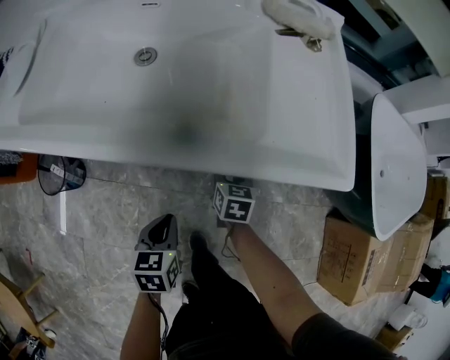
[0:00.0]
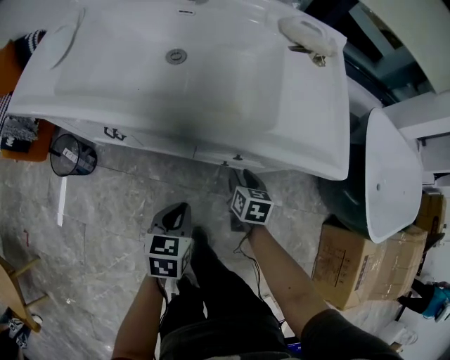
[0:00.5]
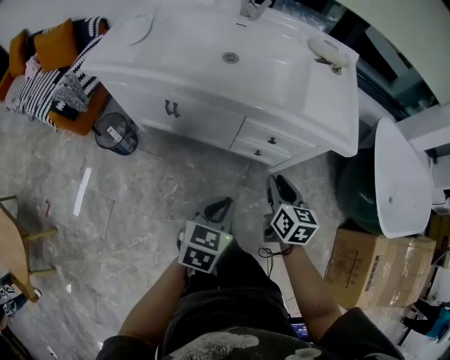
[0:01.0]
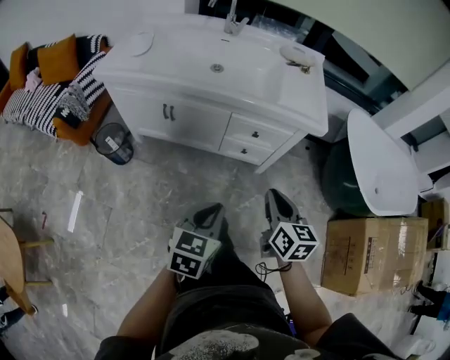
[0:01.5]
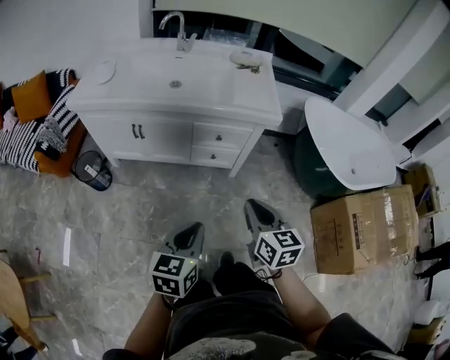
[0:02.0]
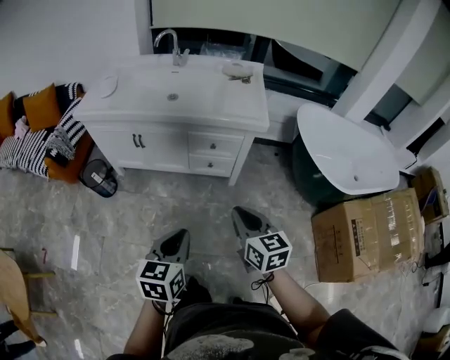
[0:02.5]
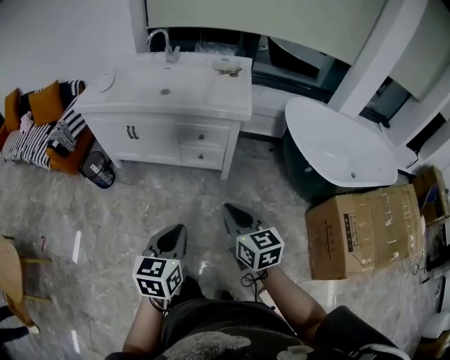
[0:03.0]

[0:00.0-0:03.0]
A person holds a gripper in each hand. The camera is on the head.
0:00.0 to 0:01.5: The two grippers go about 40 cm backward and upward. The right gripper rotates approximately 20 degrees, and closes up, while the left gripper changes its angle by some 20 degrees.
0:01.5 to 0:03.0: The grippers both shift backward, to the right and upward by about 25 cm.

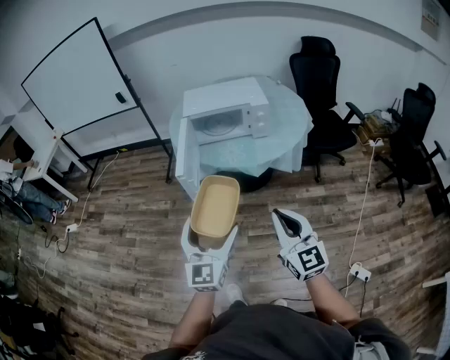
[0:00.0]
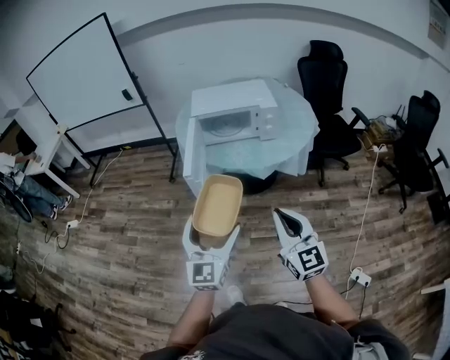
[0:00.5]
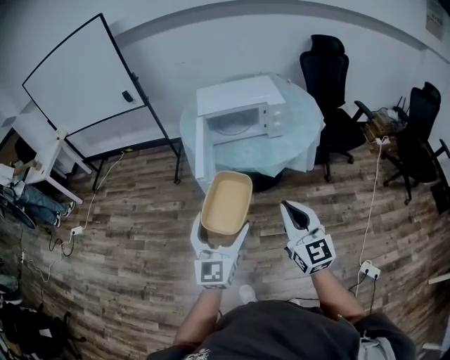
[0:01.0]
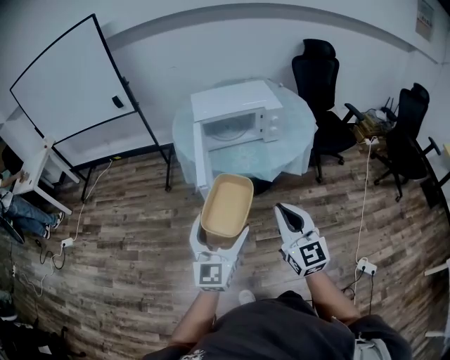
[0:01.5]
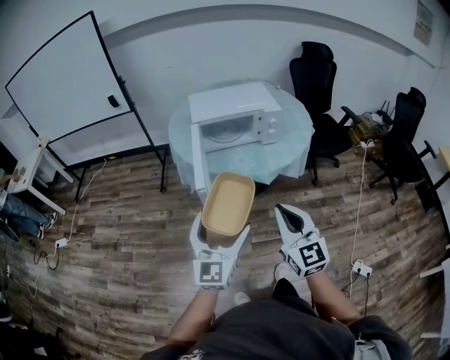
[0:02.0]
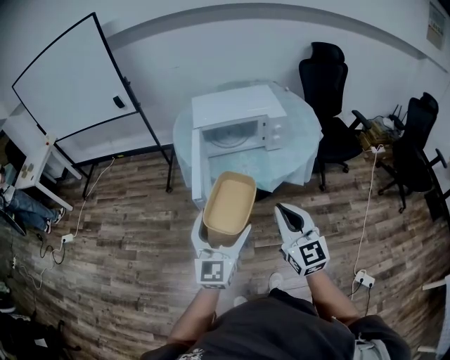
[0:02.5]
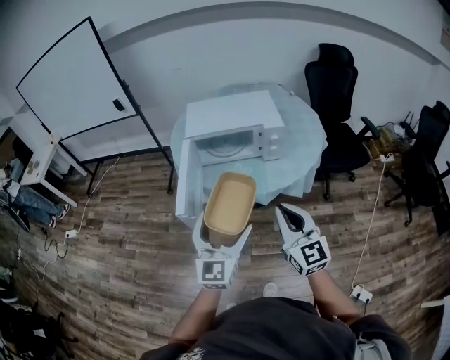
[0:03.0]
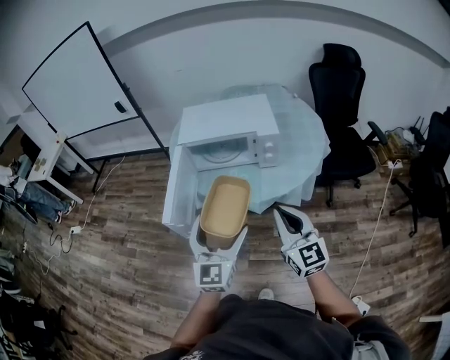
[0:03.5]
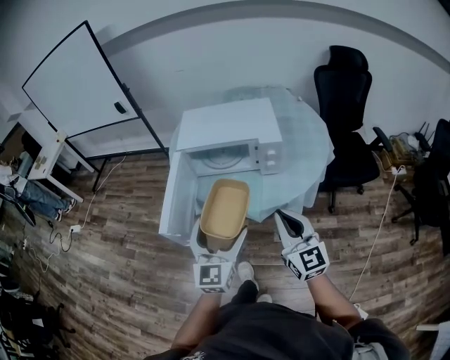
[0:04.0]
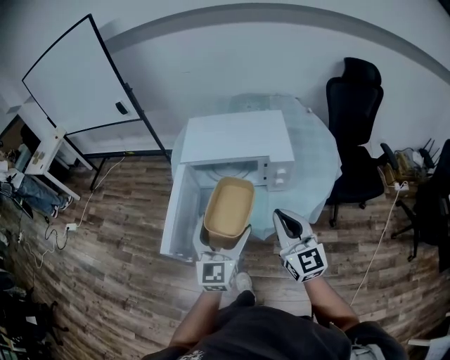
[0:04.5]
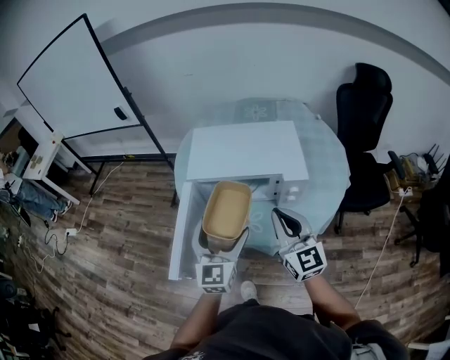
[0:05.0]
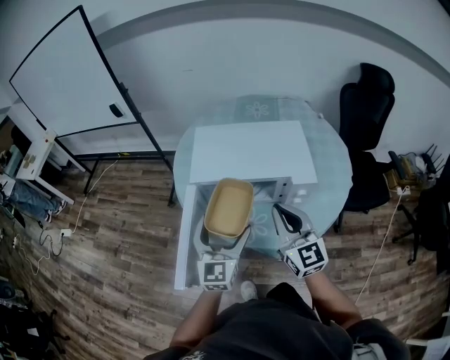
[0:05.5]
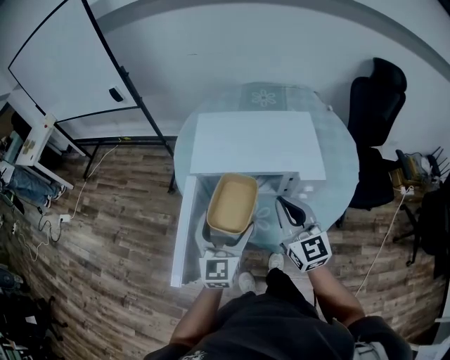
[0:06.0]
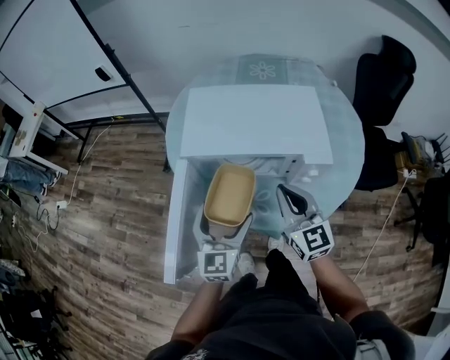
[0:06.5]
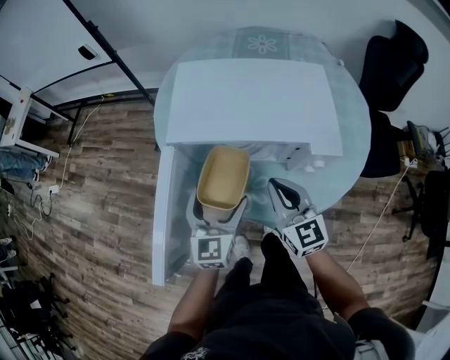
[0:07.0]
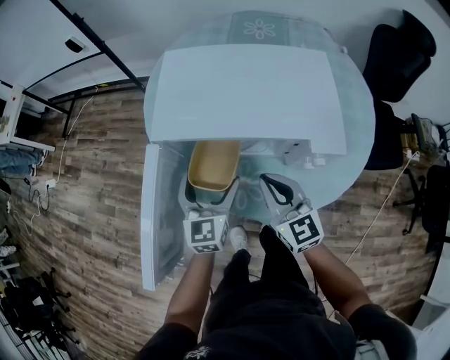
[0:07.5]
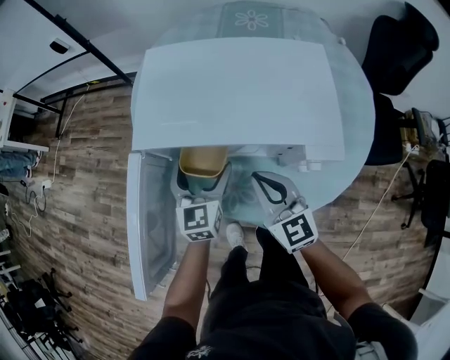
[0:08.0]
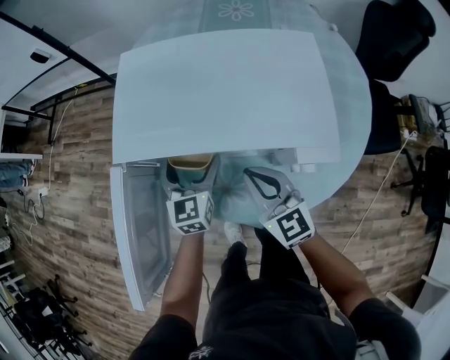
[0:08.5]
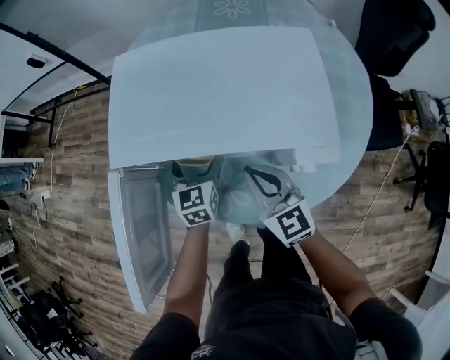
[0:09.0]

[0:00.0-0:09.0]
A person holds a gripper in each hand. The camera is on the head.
0:00.0 to 0:02.0: The left gripper travels forward and to the left by some 10 cm; the right gripper is displaced to the left and forward by approximately 15 cm.
0:02.0 to 0:04.5: The two grippers go roughly 30 cm forward and to the right.
0:04.5 to 0:07.0: The grippers both shift forward and downward by approximately 25 cm.
0:07.0 to 0:09.0: The right gripper heads downward and forward, covering roughly 10 cm. The left gripper travels forward, downward and to the right by about 20 cm.

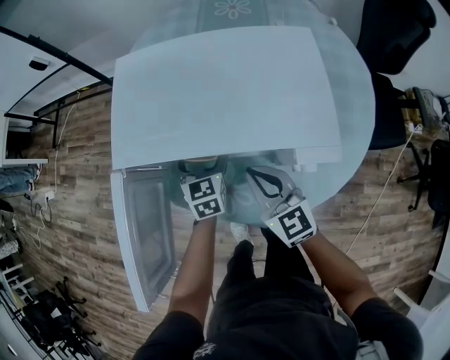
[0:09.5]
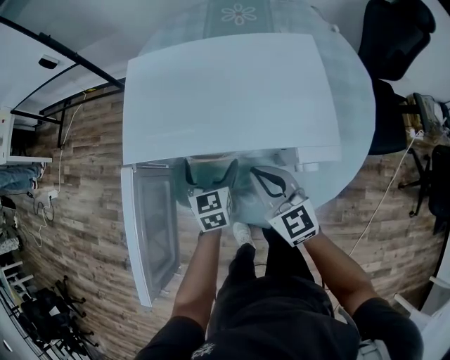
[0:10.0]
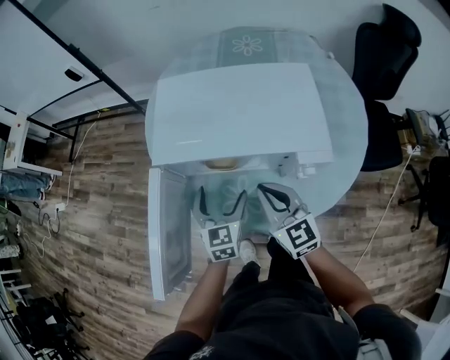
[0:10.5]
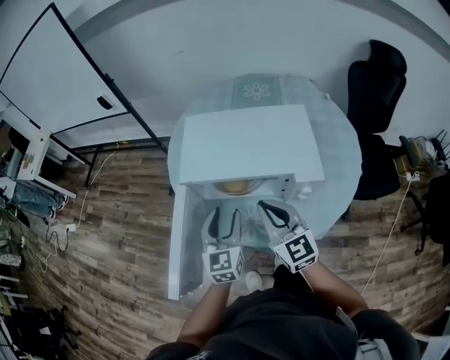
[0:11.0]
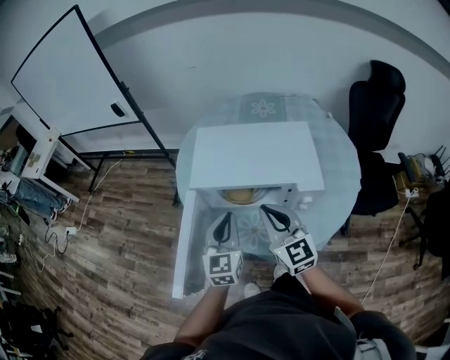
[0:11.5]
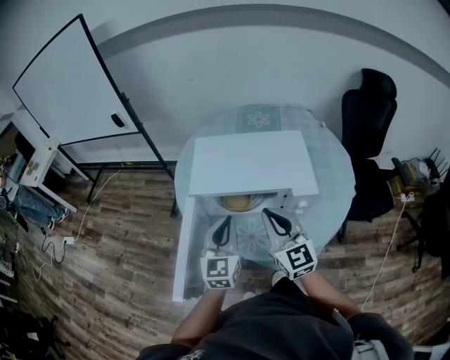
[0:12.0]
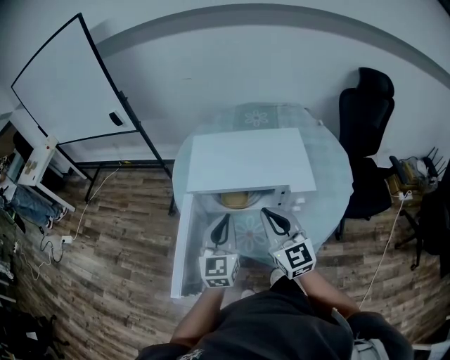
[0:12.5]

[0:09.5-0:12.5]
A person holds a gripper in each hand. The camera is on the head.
0:09.5 to 0:11.0: The right gripper is displaced upward by some 15 cm. Meanwhile the left gripper travels upward and backward by roughly 25 cm, swivels approximately 20 degrees, and closes its fingers.
0:11.0 to 0:12.5: The left gripper is displaced upward by some 5 cm, and closes up.

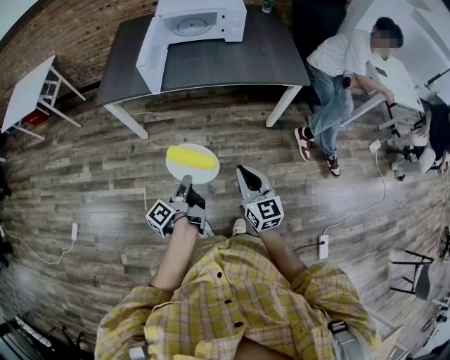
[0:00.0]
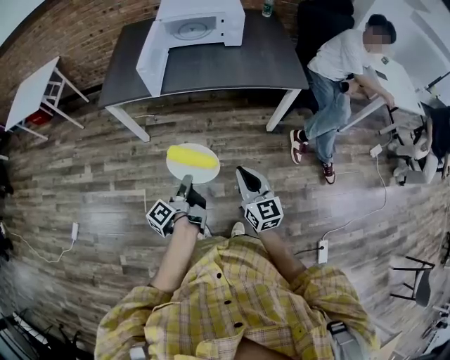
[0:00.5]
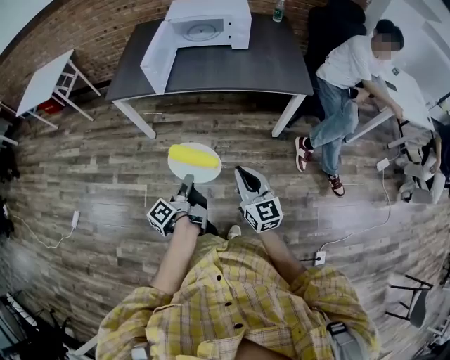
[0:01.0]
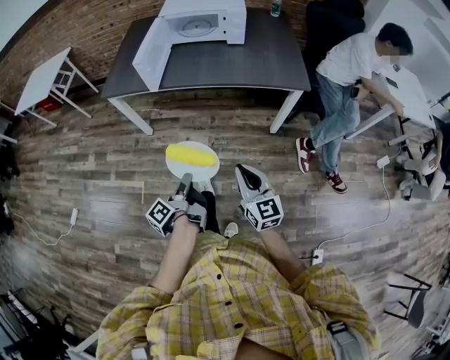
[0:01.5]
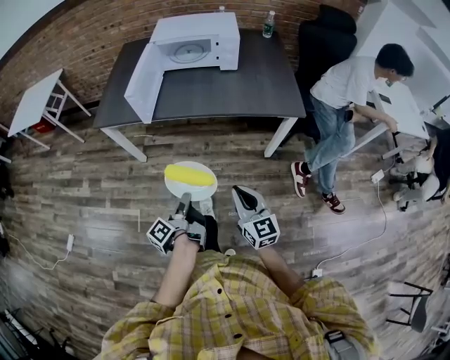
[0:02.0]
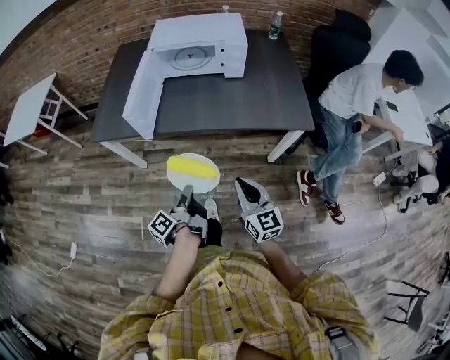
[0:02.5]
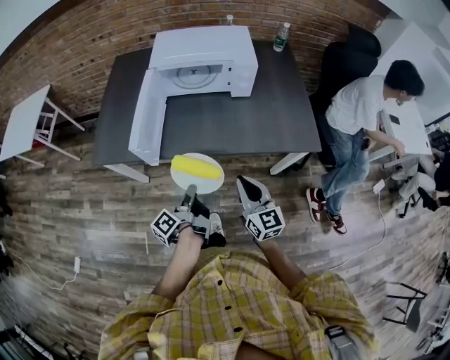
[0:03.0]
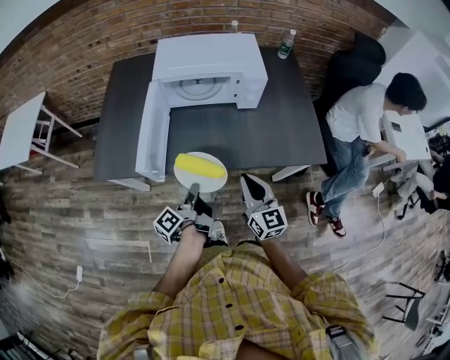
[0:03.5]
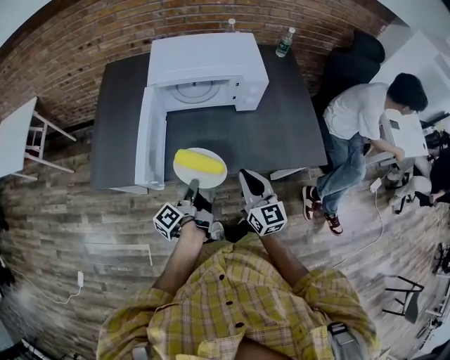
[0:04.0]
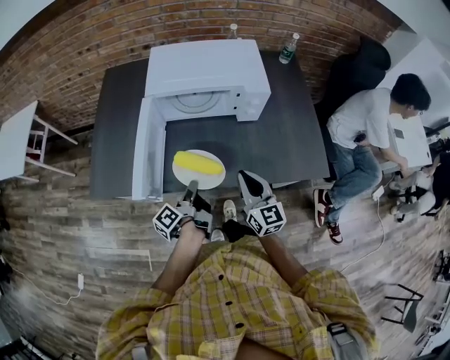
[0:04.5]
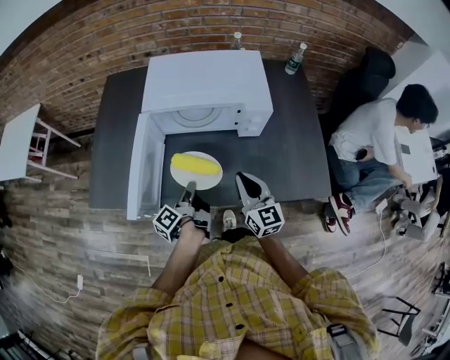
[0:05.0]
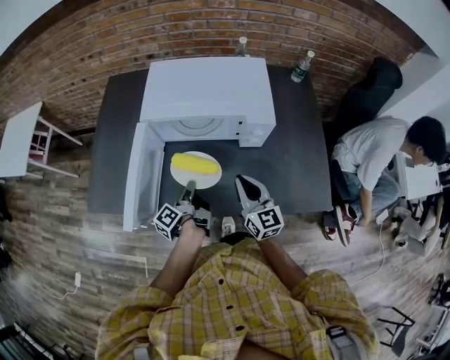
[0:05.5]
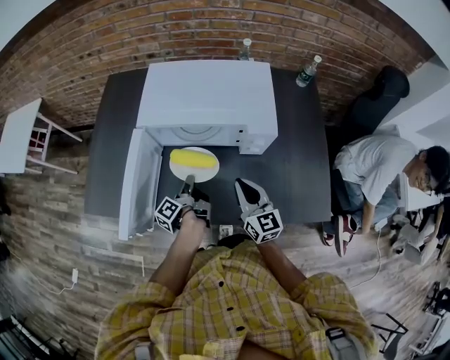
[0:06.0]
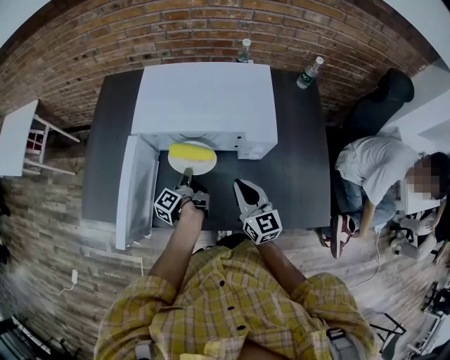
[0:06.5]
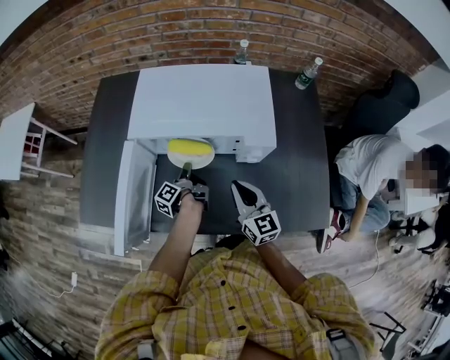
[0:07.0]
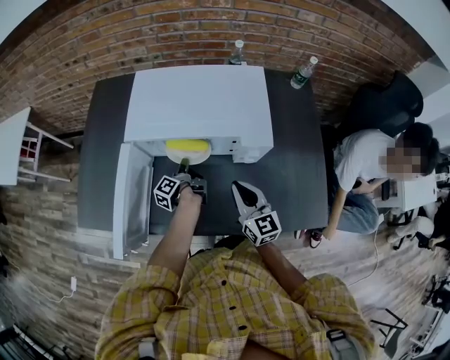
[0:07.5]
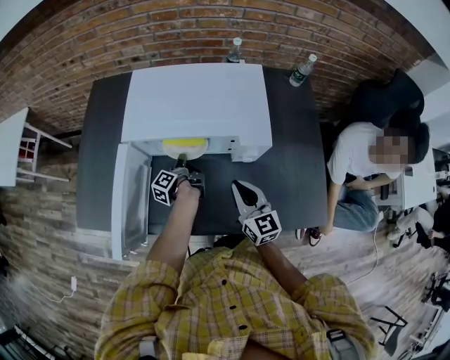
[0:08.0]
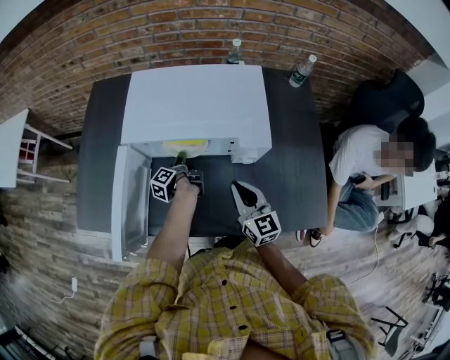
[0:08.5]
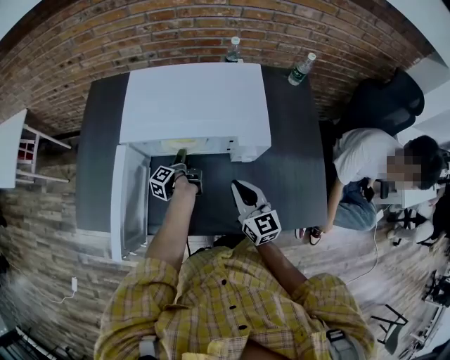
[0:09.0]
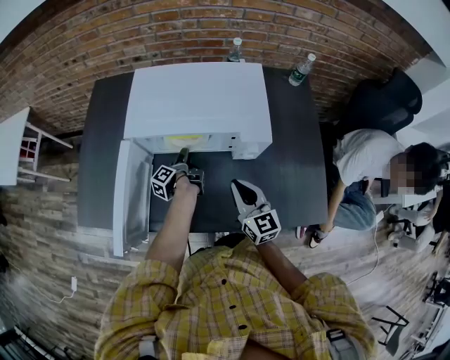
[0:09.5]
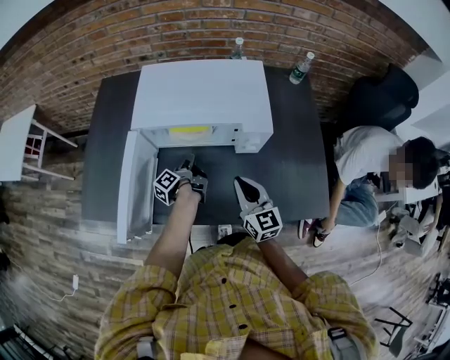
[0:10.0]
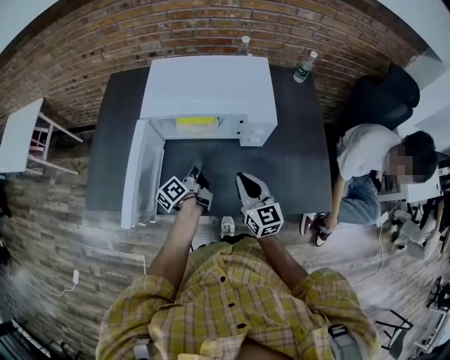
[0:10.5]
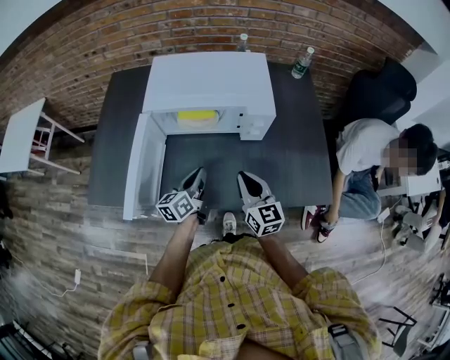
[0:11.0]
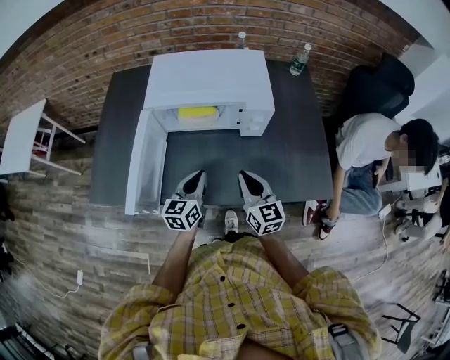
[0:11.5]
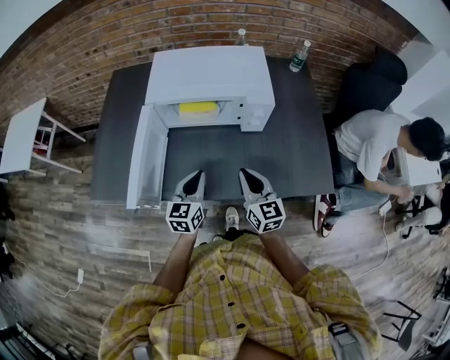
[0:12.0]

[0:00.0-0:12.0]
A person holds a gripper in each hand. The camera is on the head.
0:00.0 to 0:02.0: The right gripper ends up some 10 cm from where it was.
0:02.0 to 0:04.0: The right gripper ends up roughly 40 cm from where it was.
0:04.0 to 0:06.0: The right gripper shifts by approximately 20 cm.
0:10.0 to 0:12.0: The right gripper changes place by some 10 cm.
